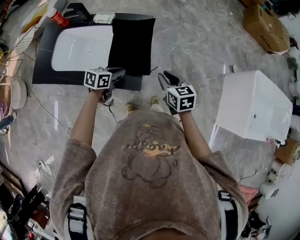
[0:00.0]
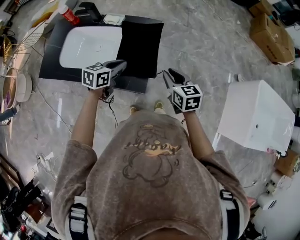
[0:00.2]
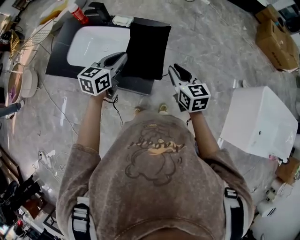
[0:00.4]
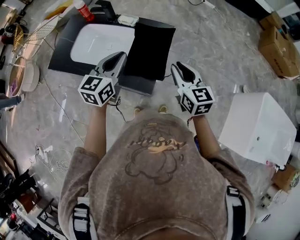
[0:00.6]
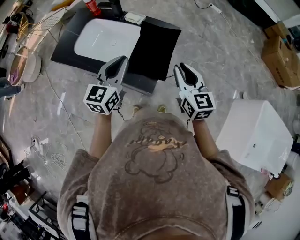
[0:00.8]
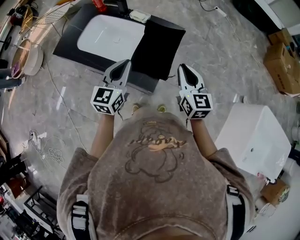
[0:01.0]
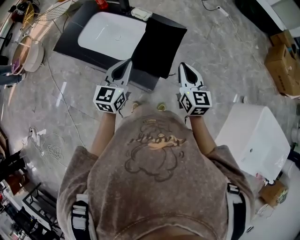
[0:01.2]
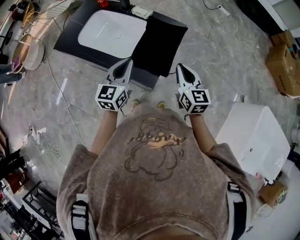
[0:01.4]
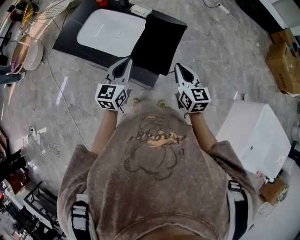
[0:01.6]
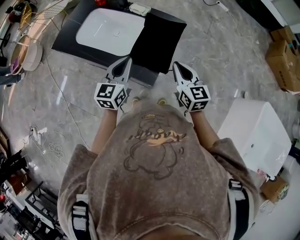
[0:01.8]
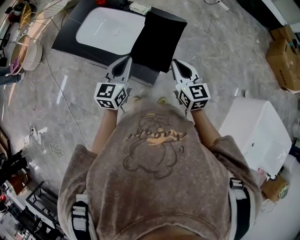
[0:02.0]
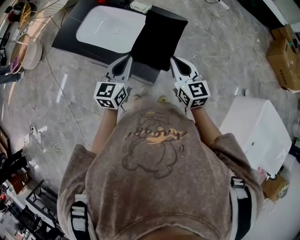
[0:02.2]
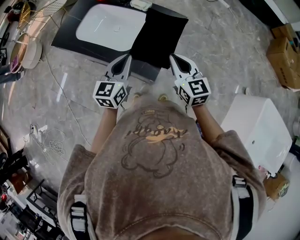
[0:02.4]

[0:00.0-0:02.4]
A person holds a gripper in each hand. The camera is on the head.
0:00.0 to 0:01.2: The left gripper heads upward, covering some 20 cm, and rotates about 50 degrees. Meanwhile the right gripper goes about 10 cm upward, and swivels roughly 20 degrees.
0:01.2 to 0:02.4: The right gripper travels to the left by approximately 5 cm.

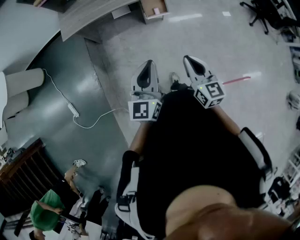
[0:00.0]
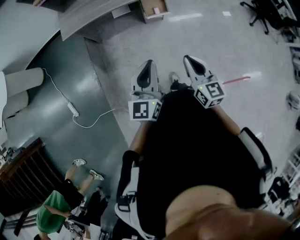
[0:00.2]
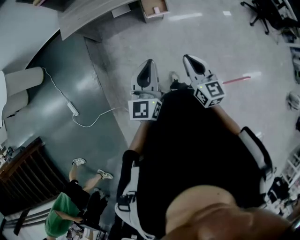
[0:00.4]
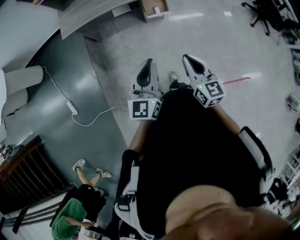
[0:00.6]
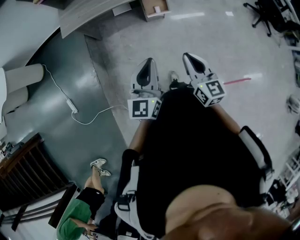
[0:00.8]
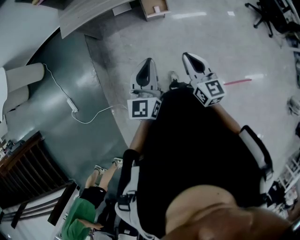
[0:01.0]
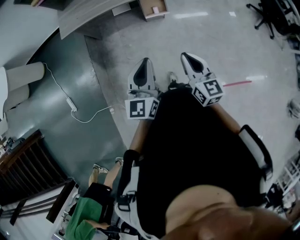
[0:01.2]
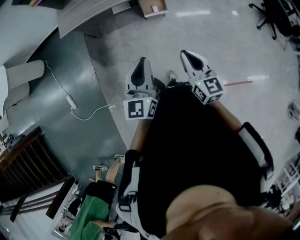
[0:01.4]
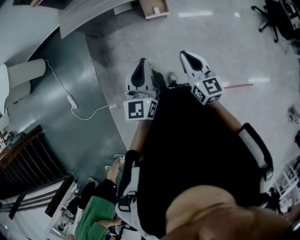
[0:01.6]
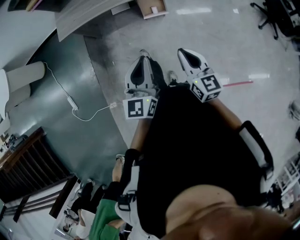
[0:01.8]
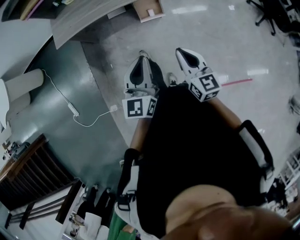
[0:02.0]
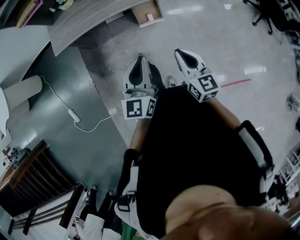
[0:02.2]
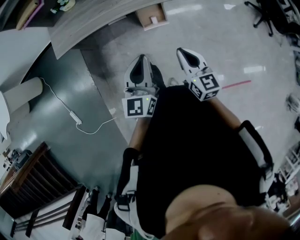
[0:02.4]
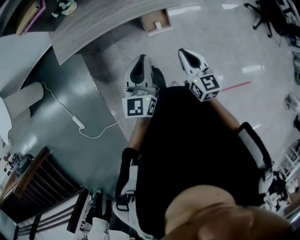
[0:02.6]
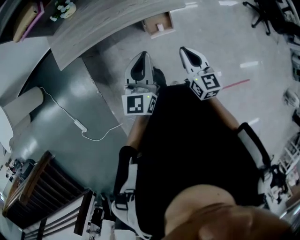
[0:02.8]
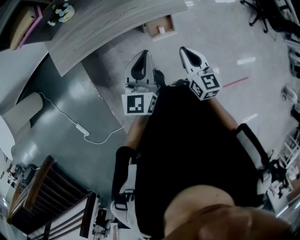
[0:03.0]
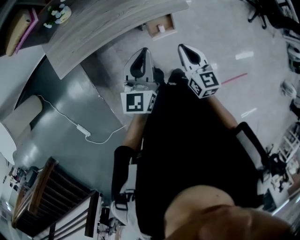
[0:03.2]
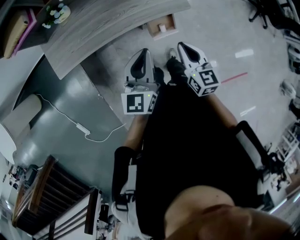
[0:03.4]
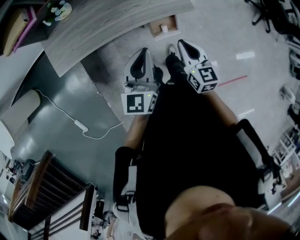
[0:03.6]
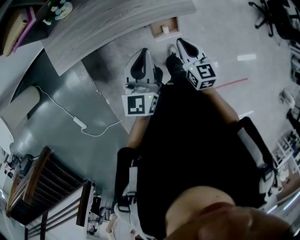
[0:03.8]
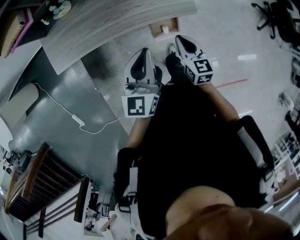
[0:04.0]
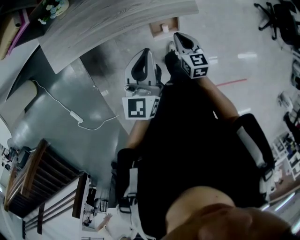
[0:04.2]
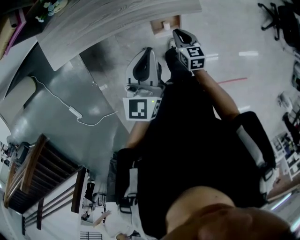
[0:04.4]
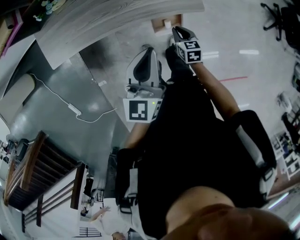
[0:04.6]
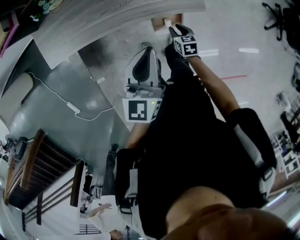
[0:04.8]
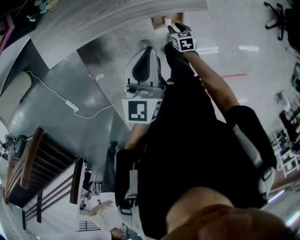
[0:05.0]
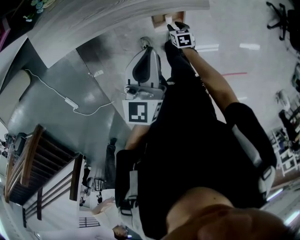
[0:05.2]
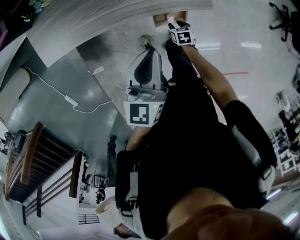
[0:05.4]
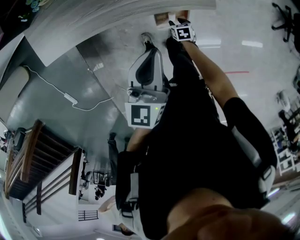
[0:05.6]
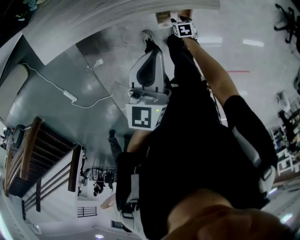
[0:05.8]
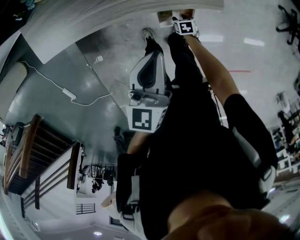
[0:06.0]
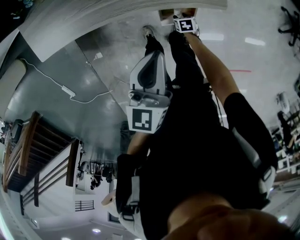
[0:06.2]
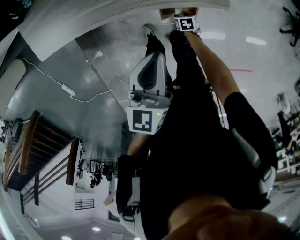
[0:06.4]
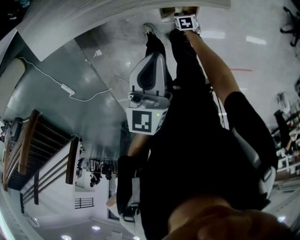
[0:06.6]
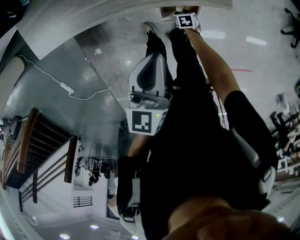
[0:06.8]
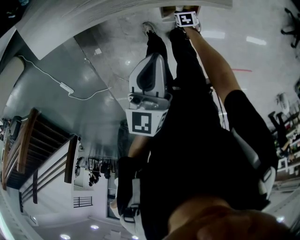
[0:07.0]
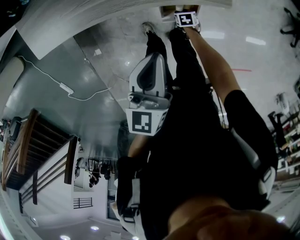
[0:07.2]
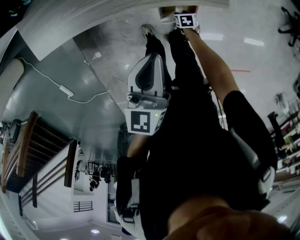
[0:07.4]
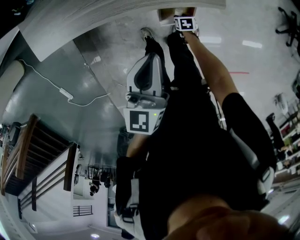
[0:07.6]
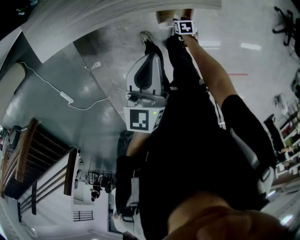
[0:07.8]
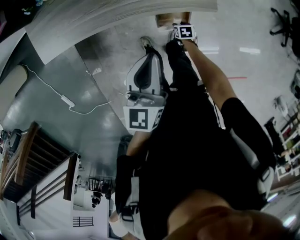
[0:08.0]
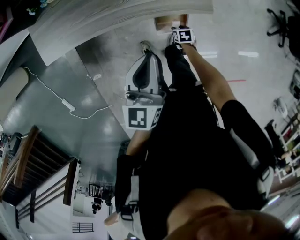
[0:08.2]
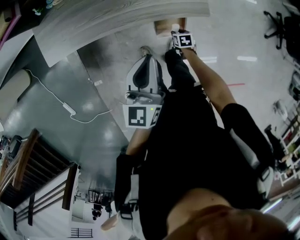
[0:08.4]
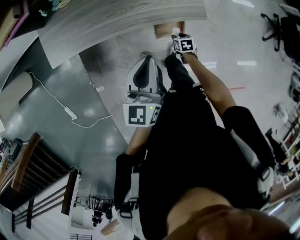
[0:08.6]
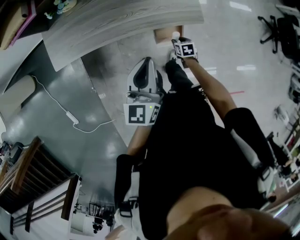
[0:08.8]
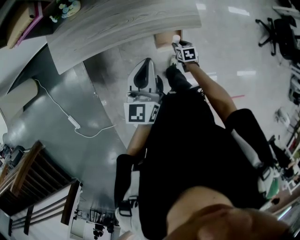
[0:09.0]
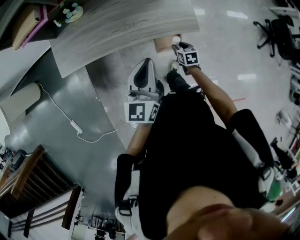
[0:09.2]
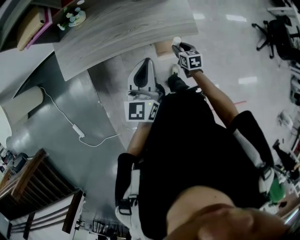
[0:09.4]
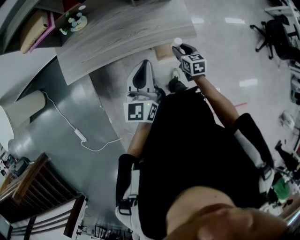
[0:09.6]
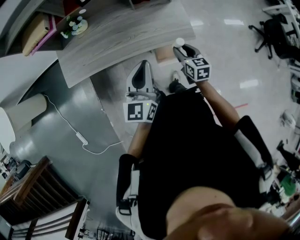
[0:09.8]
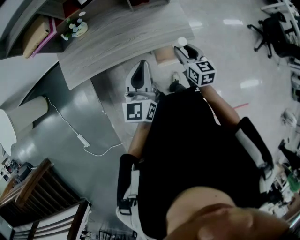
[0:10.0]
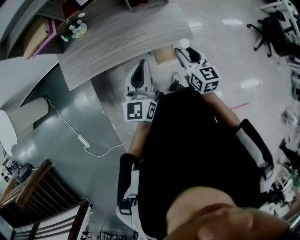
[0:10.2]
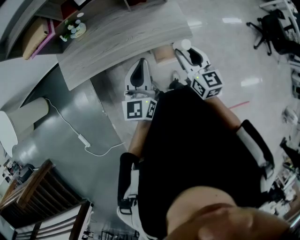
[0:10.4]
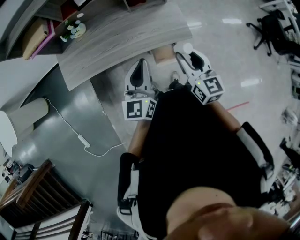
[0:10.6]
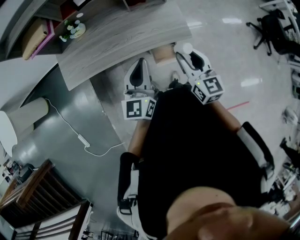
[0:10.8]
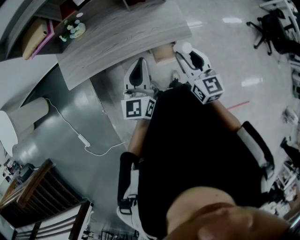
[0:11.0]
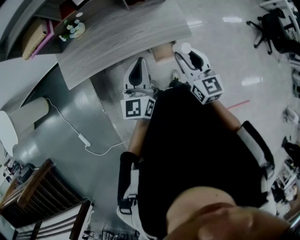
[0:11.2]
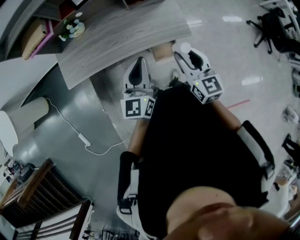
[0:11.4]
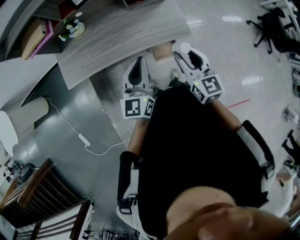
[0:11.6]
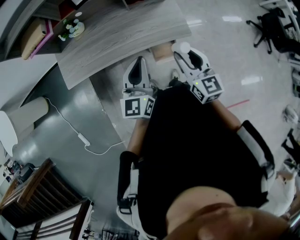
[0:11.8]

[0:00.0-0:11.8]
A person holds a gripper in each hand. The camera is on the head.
0:00.0 to 0:01.4: The left gripper shifts roughly 5 cm to the right, while the right gripper goes roughly 10 cm to the right and forward.
0:01.4 to 0:03.0: The grippers both shift forward by about 30 cm.
0:03.0 to 0:04.4: The right gripper travels downward and forward by some 25 cm, and rotates roughly 20 degrees, while the left gripper goes approximately 10 cm forward.
0:04.4 to 0:06.0: The left gripper moves downward, roughly 5 cm, while the right gripper heads downward, covering about 30 cm, tips its fingers downward by some 30 degrees, and opens.
0:06.0 to 0:07.4: There are only small adjustments of the grippers.
0:07.4 to 0:08.8: The left gripper goes approximately 10 cm upward. The right gripper moves upward, approximately 15 cm.
0:08.8 to 0:10.4: The right gripper heads upward, covering approximately 40 cm, and points its fingers roughly 50 degrees further upward, while the left gripper goes about 5 cm upward.
0:10.4 to 0:11.8: The grippers make only small movements.

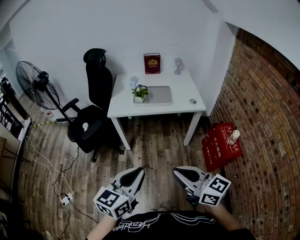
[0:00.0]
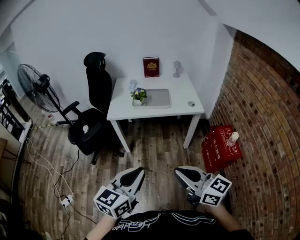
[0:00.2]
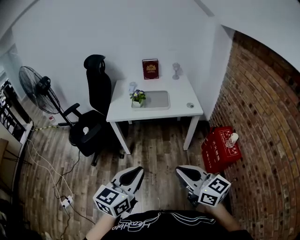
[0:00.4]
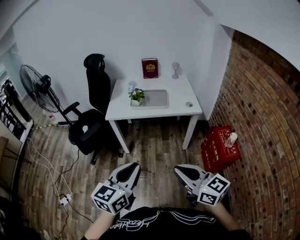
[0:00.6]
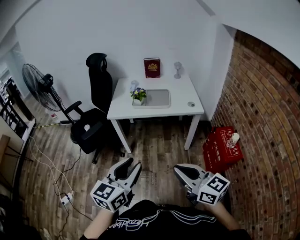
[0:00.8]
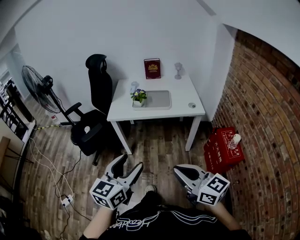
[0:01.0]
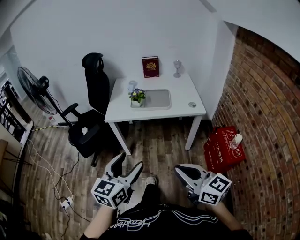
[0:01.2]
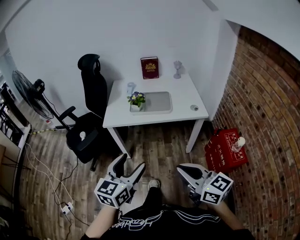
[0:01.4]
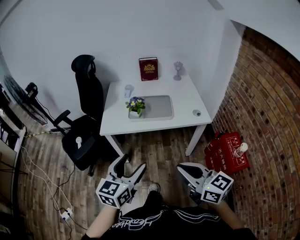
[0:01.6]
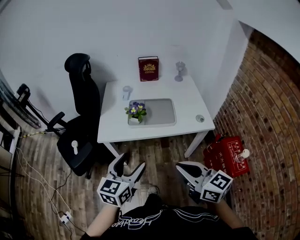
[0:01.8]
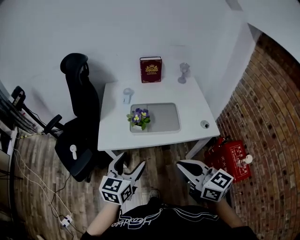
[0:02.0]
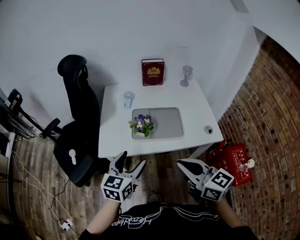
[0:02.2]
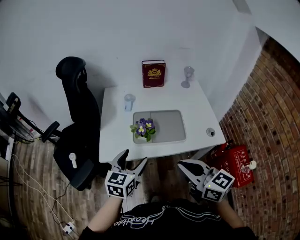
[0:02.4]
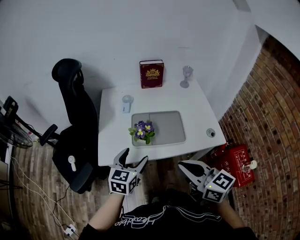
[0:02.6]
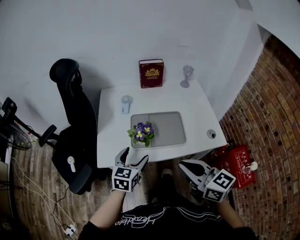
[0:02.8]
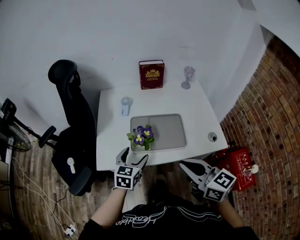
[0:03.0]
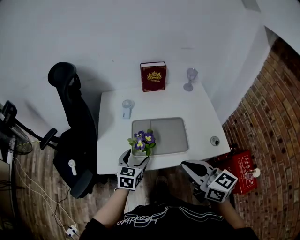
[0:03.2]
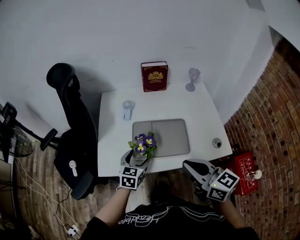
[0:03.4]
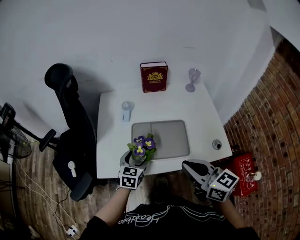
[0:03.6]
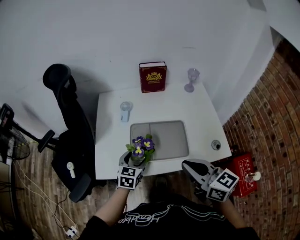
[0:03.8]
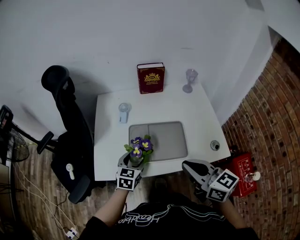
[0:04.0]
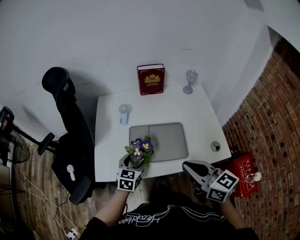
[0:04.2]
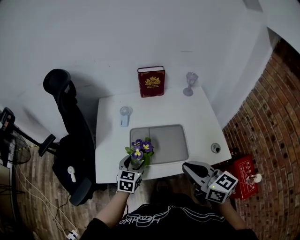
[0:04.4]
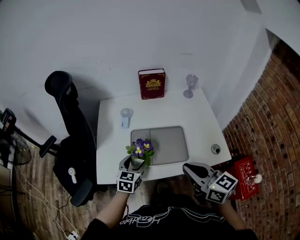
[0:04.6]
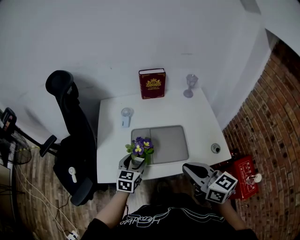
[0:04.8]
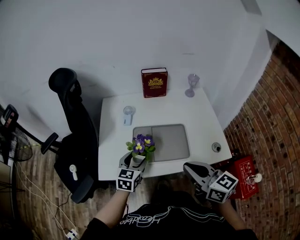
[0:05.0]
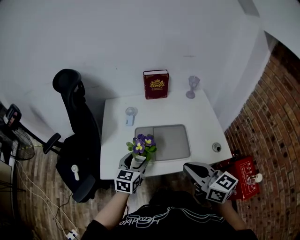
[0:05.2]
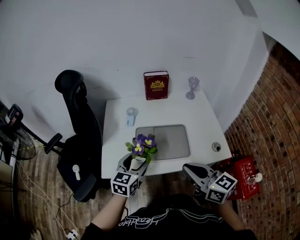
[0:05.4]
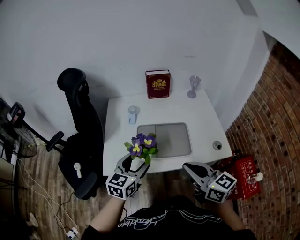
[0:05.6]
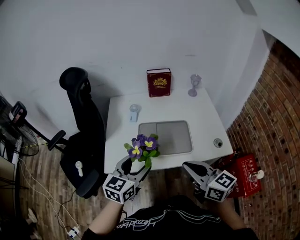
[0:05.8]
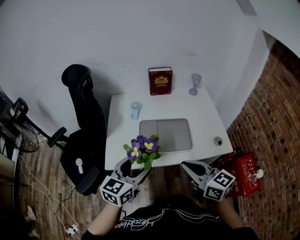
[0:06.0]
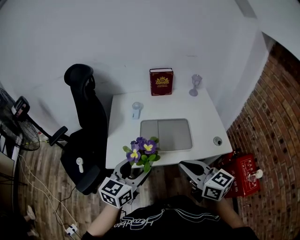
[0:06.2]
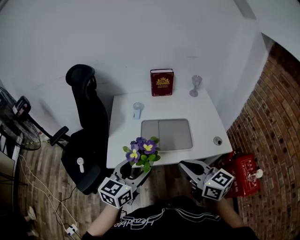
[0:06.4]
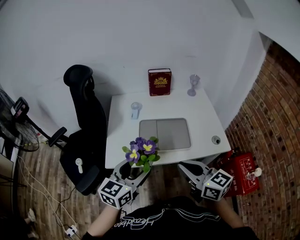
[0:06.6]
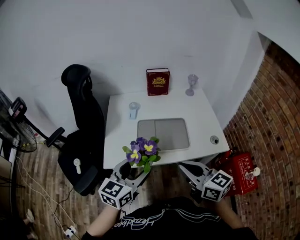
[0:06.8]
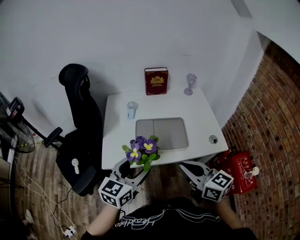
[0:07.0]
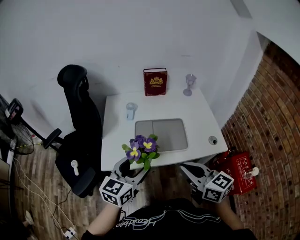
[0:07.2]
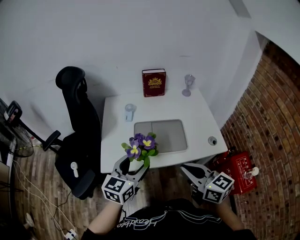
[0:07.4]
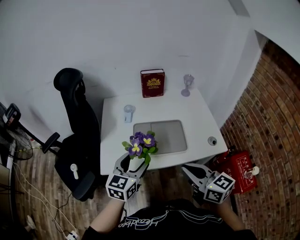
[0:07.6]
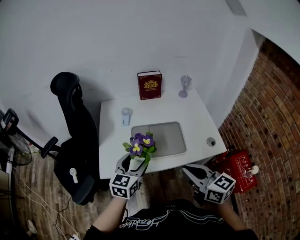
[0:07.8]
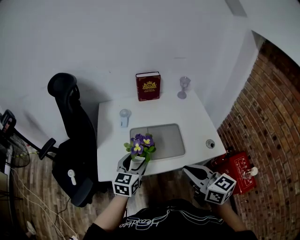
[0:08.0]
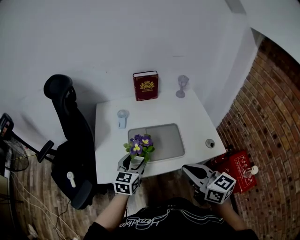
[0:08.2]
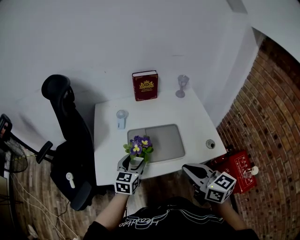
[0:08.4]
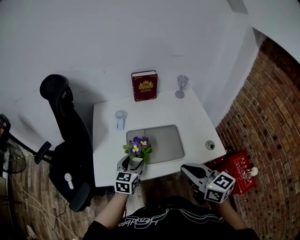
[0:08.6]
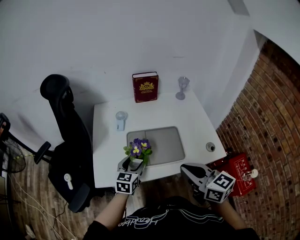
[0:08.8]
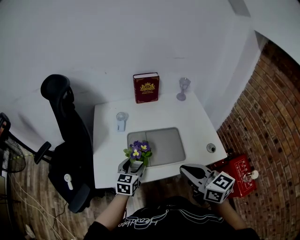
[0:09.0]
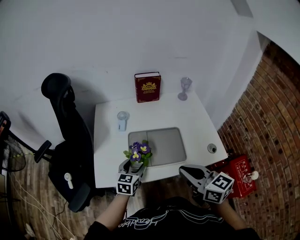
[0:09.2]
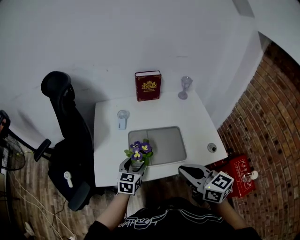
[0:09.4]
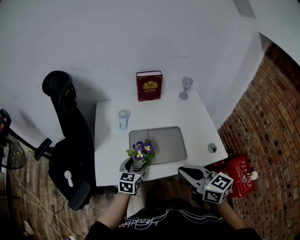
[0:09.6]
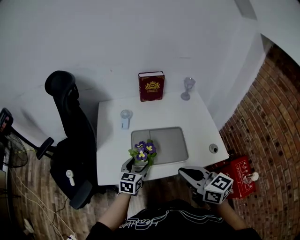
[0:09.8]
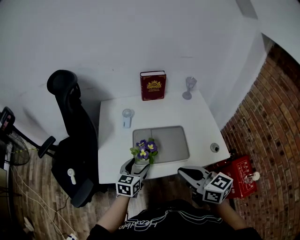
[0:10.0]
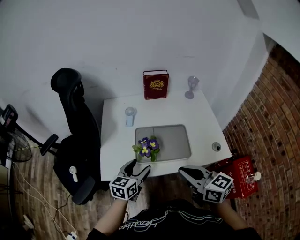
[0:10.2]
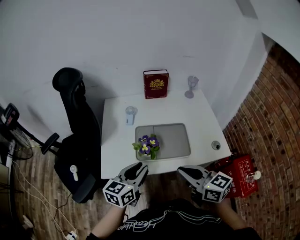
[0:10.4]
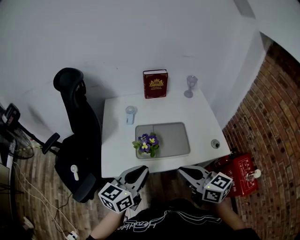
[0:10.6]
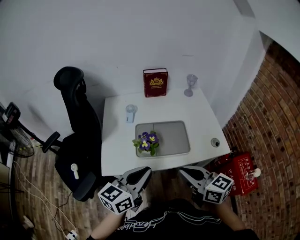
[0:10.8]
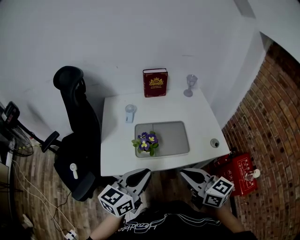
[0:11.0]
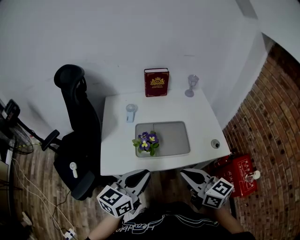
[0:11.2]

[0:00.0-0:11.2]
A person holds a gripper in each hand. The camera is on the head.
0:00.0 to 0:01.6: Both grippers move forward, approximately 20 cm. The left gripper opens up.
0:01.6 to 0:03.2: The left gripper travels forward and downward by approximately 40 cm. The right gripper travels forward by approximately 30 cm.
0:03.2 to 0:04.8: The grippers stay close to where they were, moving slightly.
0:04.8 to 0:06.4: The left gripper moves upward and backward, some 20 cm. The right gripper is displaced backward and to the left by some 10 cm.
0:06.4 to 0:08.0: The left gripper shifts some 15 cm forward and downward.
0:08.0 to 0:09.6: The left gripper is displaced downward by some 10 cm.
0:09.6 to 0:11.2: The left gripper travels upward and backward by approximately 20 cm, changes its angle by roughly 20 degrees, and closes. Meanwhile the right gripper moves backward, roughly 5 cm.
